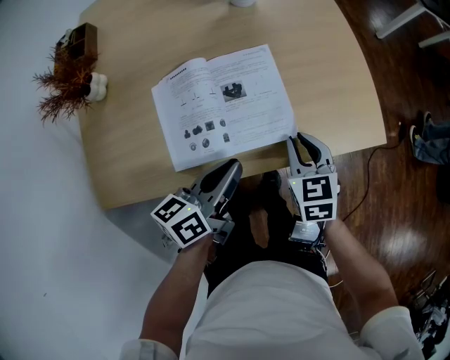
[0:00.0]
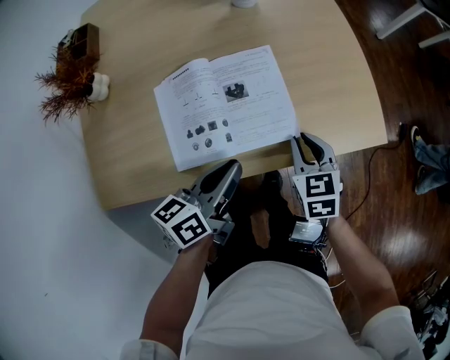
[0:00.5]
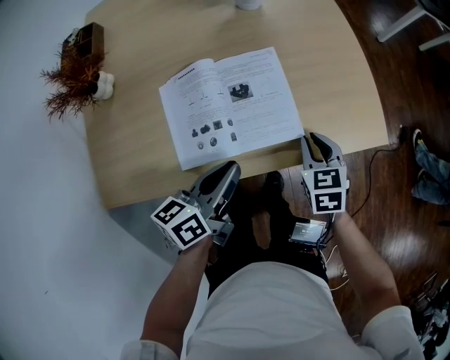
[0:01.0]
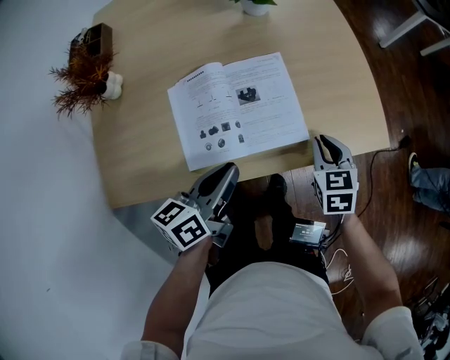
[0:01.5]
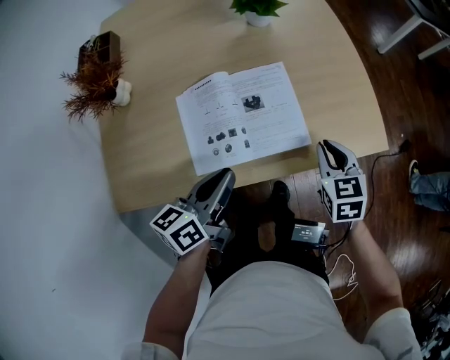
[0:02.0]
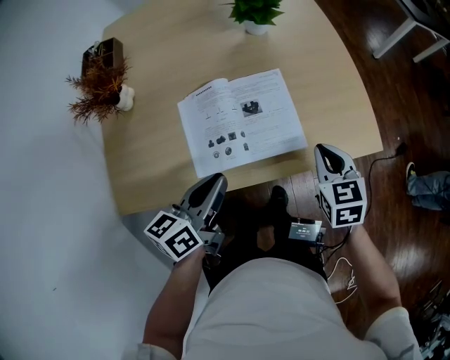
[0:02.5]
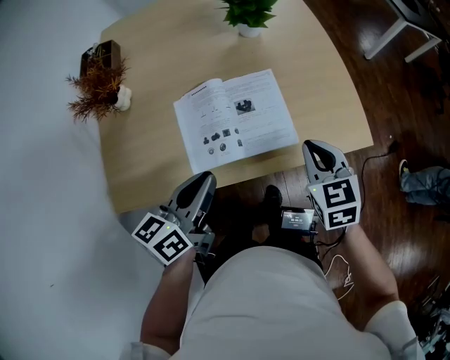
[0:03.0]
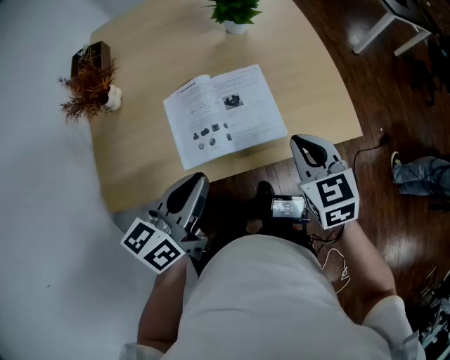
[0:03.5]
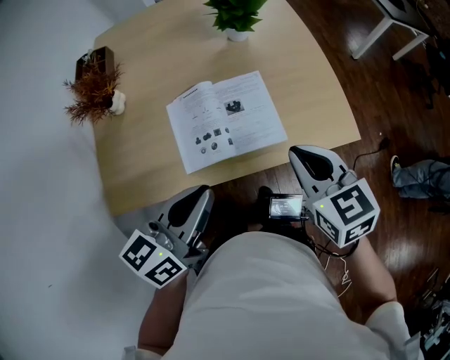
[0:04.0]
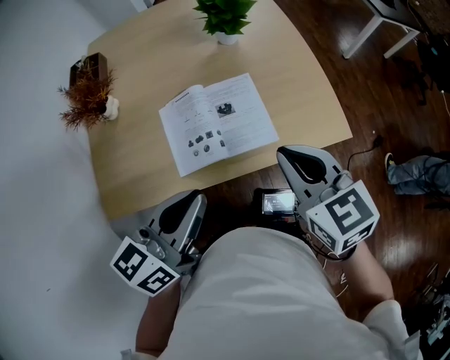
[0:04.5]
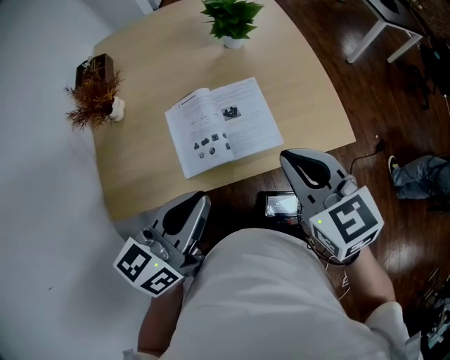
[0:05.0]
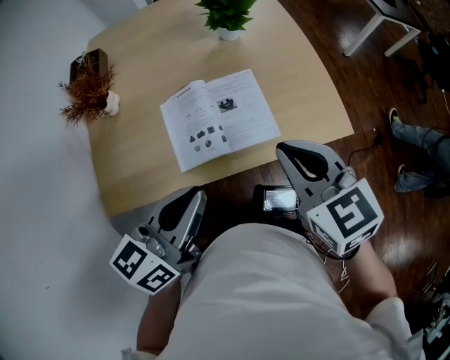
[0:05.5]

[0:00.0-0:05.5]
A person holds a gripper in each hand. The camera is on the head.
0:00.0 to 0:02.0: The right gripper shifts by about 5 cm. The left gripper heads to the left, covering approximately 5 cm.
0:02.0 to 0:03.5: The two grippers go approximately 10 cm upward.
0:03.5 to 0:05.5: The right gripper goes about 10 cm upward, while the left gripper moves upward, some 5 cm.

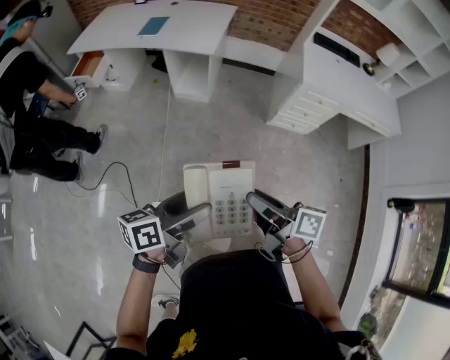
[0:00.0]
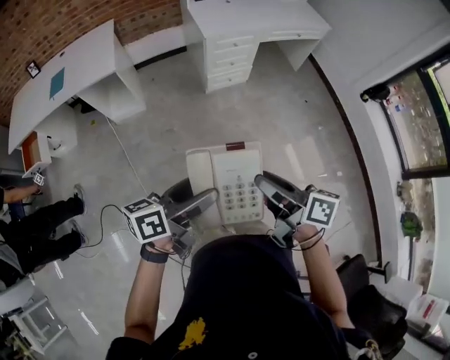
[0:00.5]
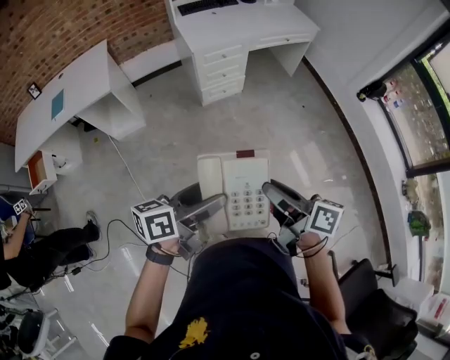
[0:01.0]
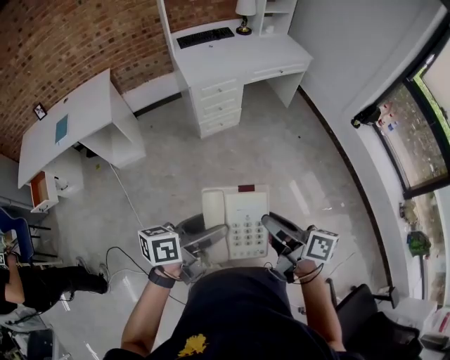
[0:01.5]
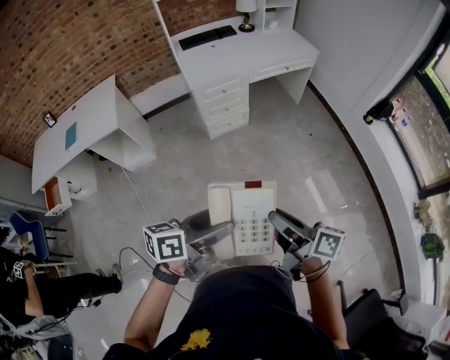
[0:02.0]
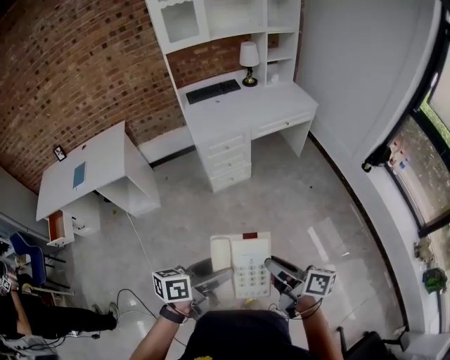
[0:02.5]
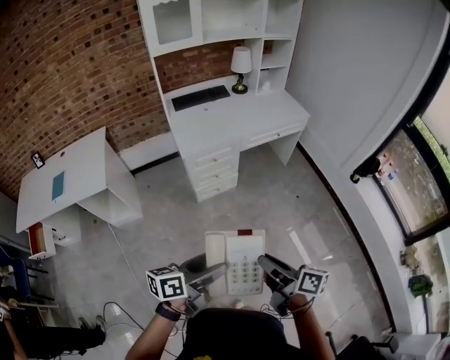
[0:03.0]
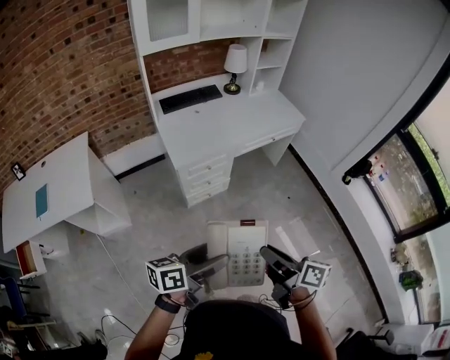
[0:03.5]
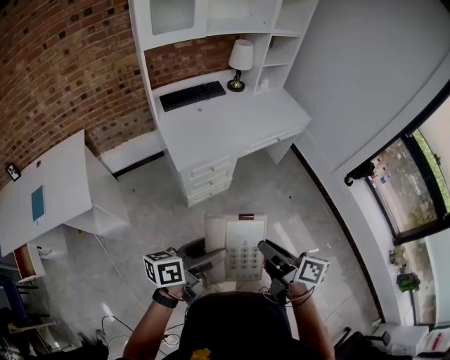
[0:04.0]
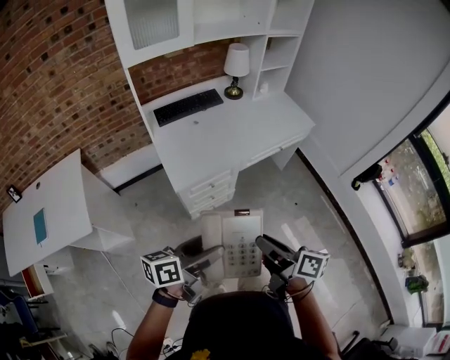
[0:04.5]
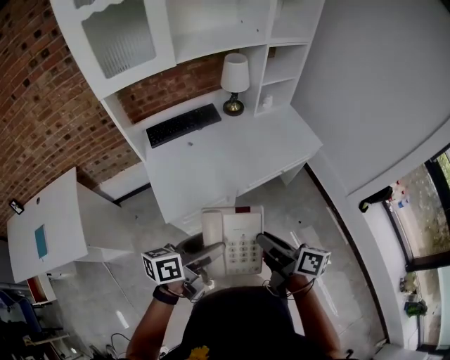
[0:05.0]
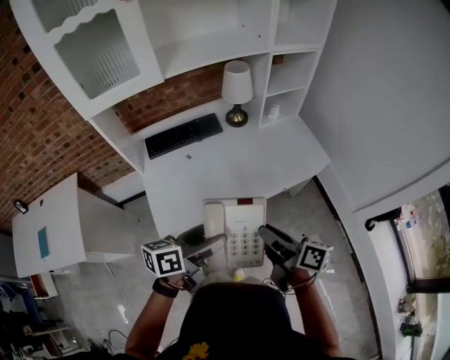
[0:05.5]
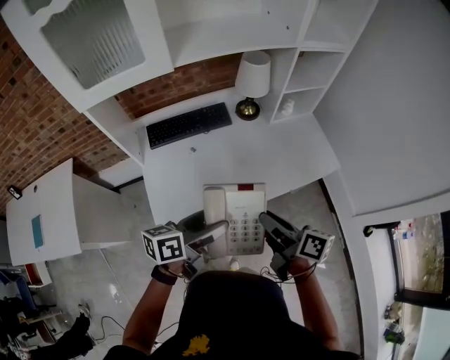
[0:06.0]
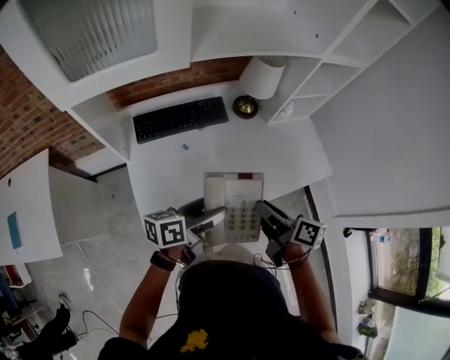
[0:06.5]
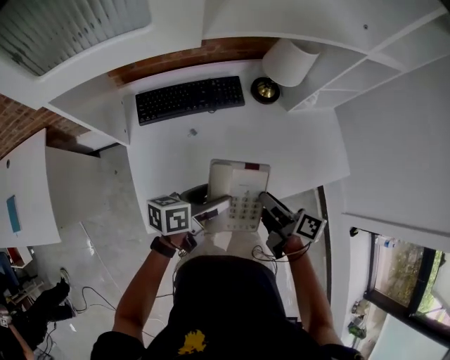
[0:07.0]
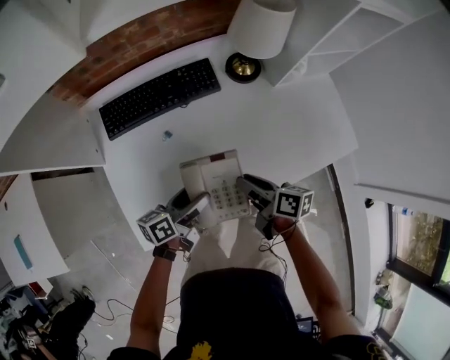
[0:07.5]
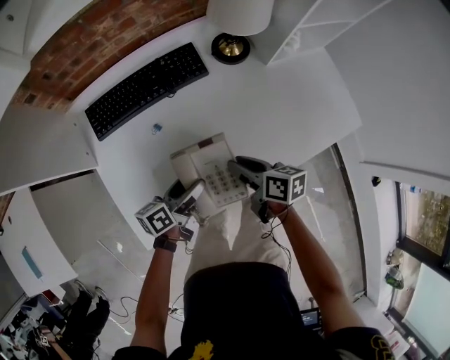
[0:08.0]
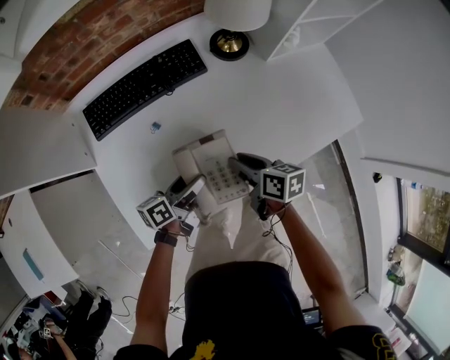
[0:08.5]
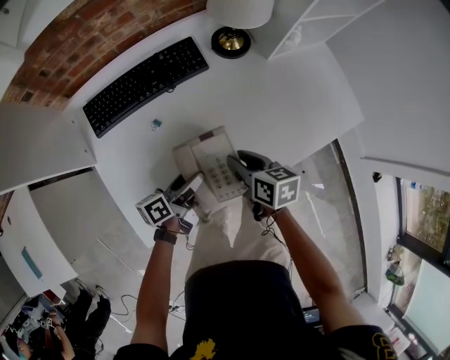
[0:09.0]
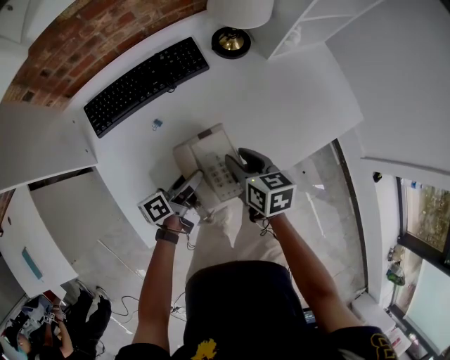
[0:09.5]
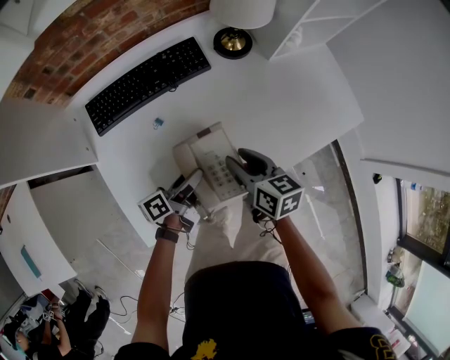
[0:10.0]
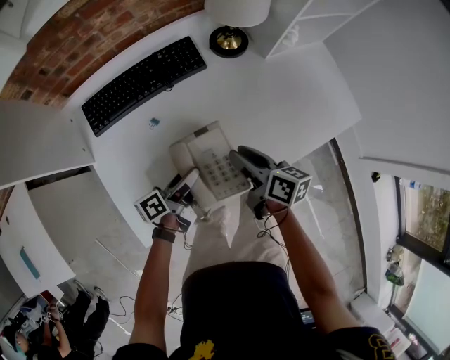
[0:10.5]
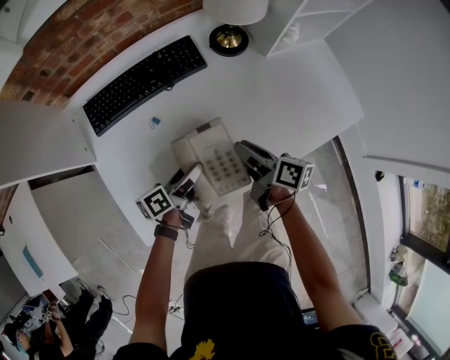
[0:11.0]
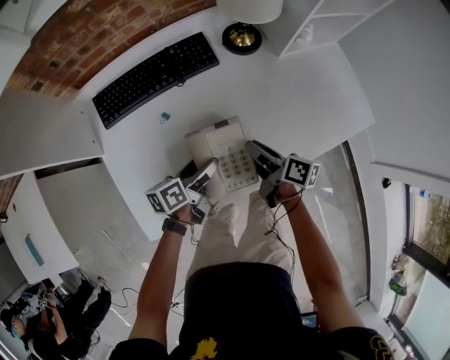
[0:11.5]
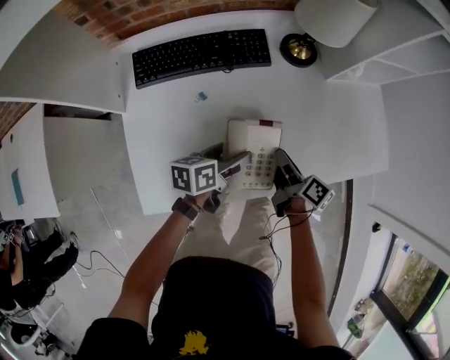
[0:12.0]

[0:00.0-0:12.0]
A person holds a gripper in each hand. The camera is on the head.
0:00.0 to 0:02.0: The pair of grippers is taken roughly 40 cm. The right gripper rotates roughly 30 degrees. The left gripper rotates some 30 degrees.
0:02.0 to 0:04.0: The two grippers go some 40 cm forward and to the left.
0:04.0 to 0:06.0: The pair of grippers is taken forward, some 50 cm.
0:06.0 to 0:08.0: Both grippers travel together downward and forward, roughly 35 cm. The right gripper turns by some 20 degrees.
0:10.0 to 0:12.0: The right gripper heads downward and to the right, covering some 10 cm, and changes its angle by roughly 40 degrees, while the left gripper swivels roughly 30 degrees.

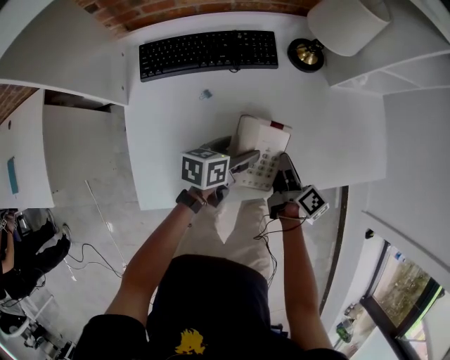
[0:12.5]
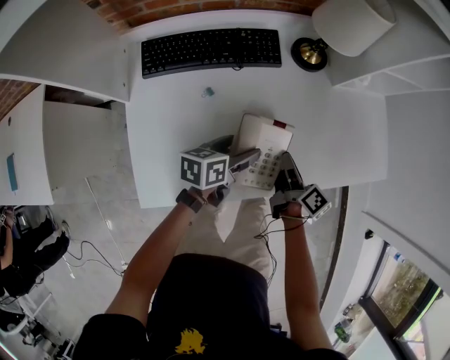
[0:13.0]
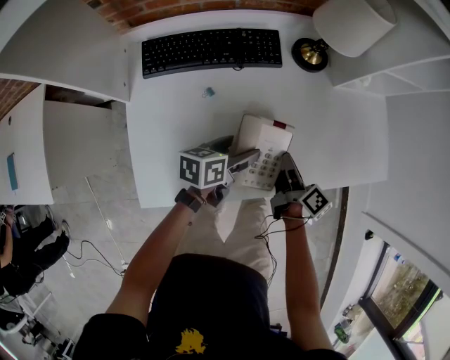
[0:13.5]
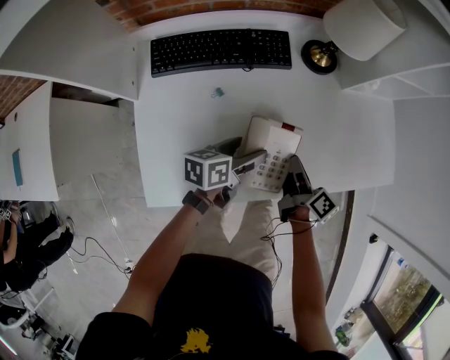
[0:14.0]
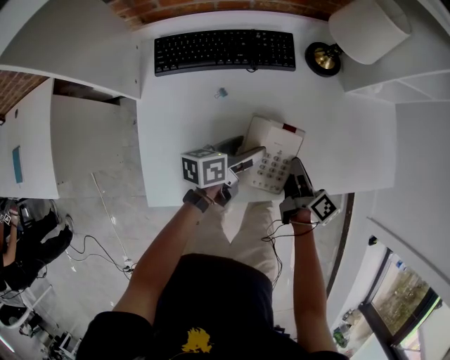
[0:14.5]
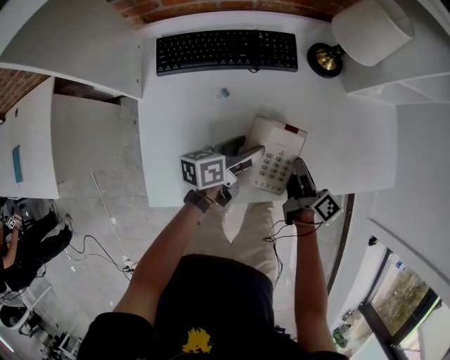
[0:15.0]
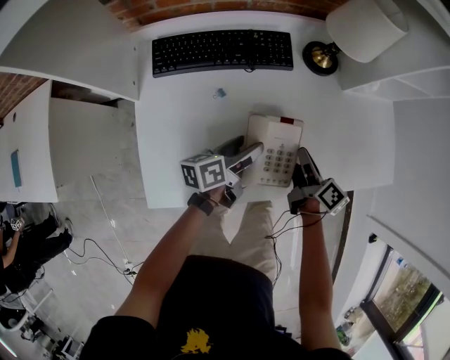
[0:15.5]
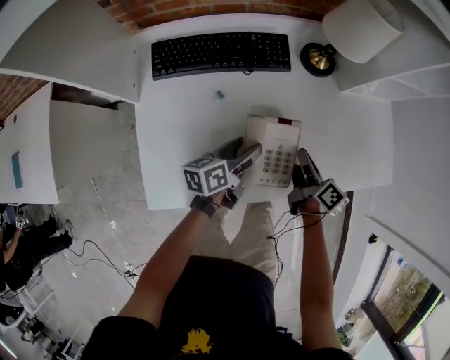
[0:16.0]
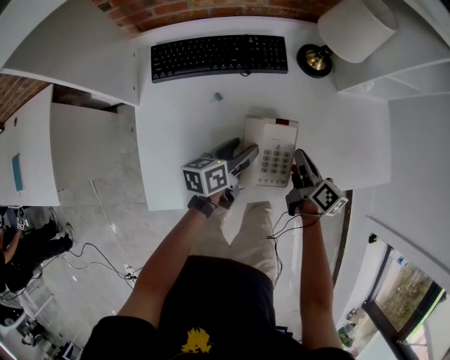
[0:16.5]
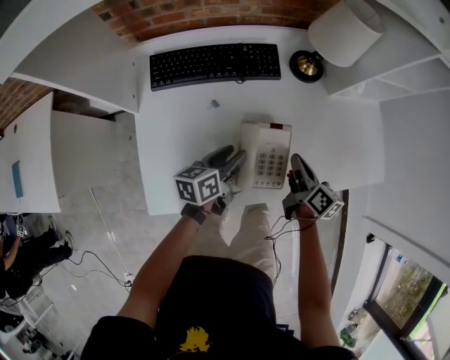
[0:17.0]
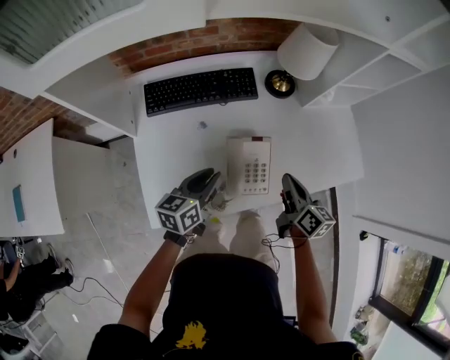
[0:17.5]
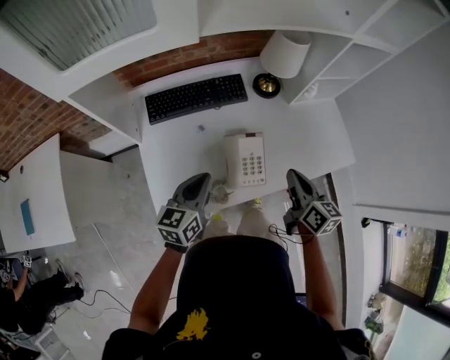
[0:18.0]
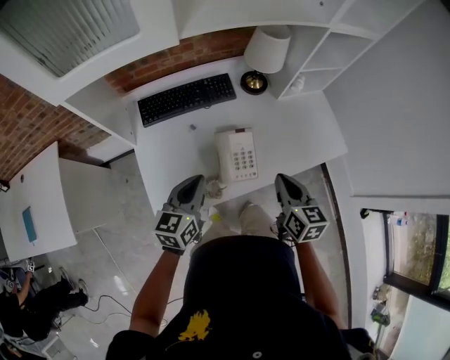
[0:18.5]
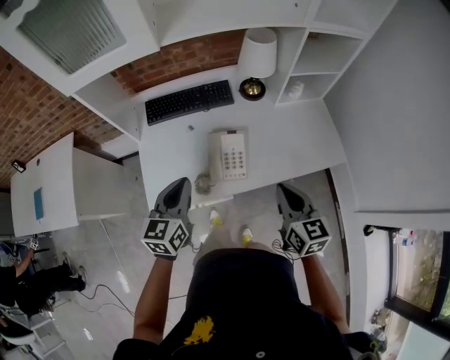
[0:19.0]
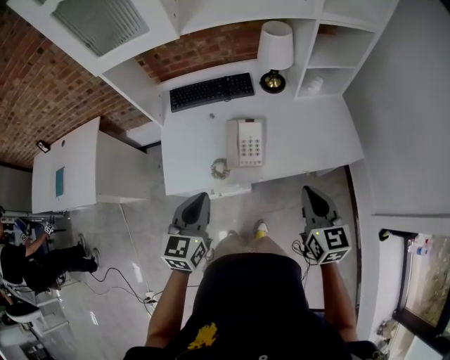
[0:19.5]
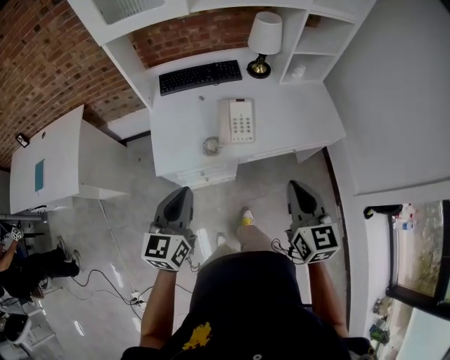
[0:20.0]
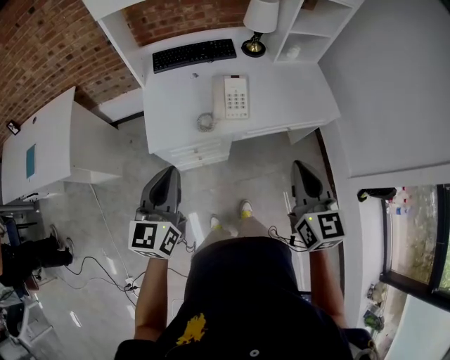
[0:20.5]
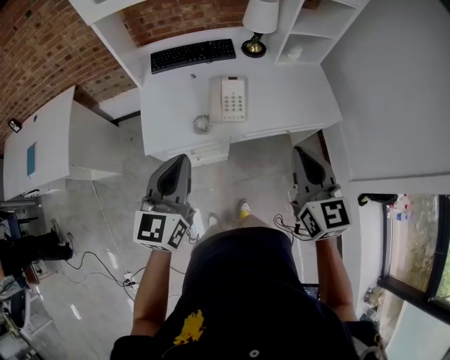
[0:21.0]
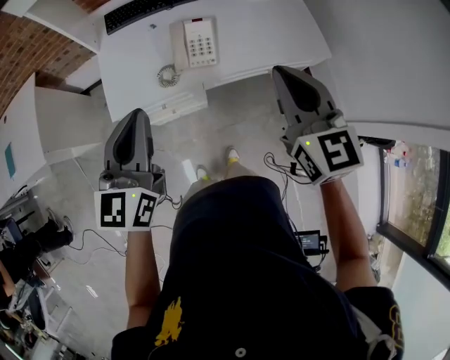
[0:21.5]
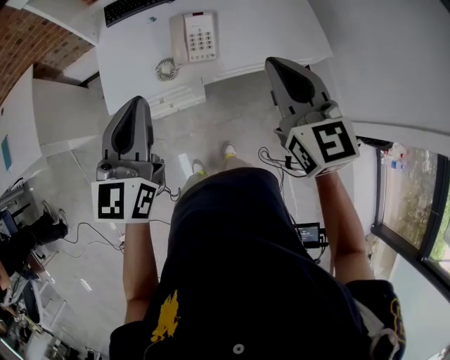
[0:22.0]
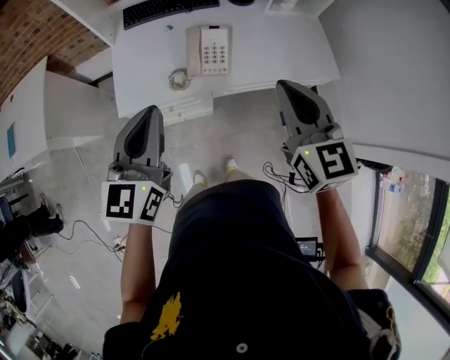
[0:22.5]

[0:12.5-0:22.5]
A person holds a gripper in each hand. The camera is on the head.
0:12.5 to 0:14.5: The grippers move only a little.
0:14.5 to 0:16.5: There are only small adjustments of the grippers.
0:16.5 to 0:18.5: Both grippers travel together upward and backward, roughly 25 cm. The left gripper swivels some 30 degrees, and closes up. Meanwhile the right gripper changes its angle by roughly 30 degrees.
0:18.5 to 0:20.5: The left gripper moves backward, about 30 cm, and turns by roughly 20 degrees; the right gripper goes about 30 cm backward and upward, and turns by about 20 degrees.
0:20.5 to 0:22.5: The left gripper heads to the right and forward, covering about 10 cm. The right gripper heads forward, covering approximately 10 cm.
